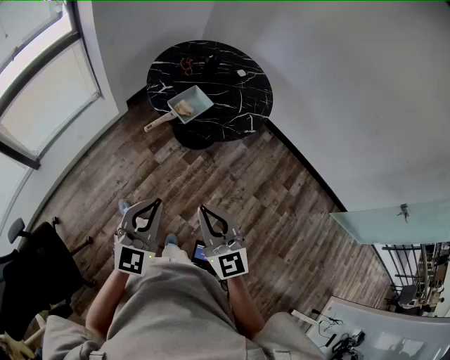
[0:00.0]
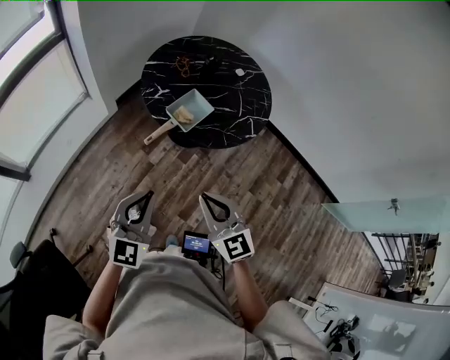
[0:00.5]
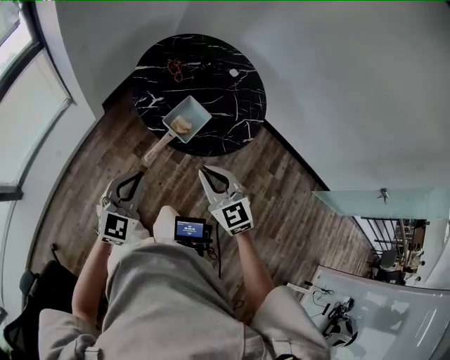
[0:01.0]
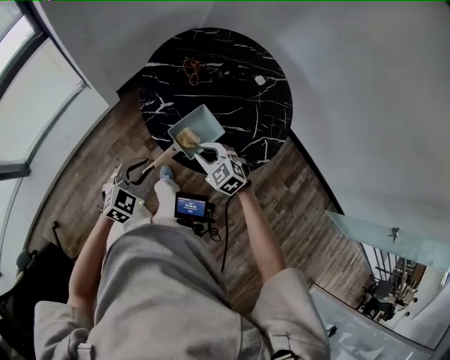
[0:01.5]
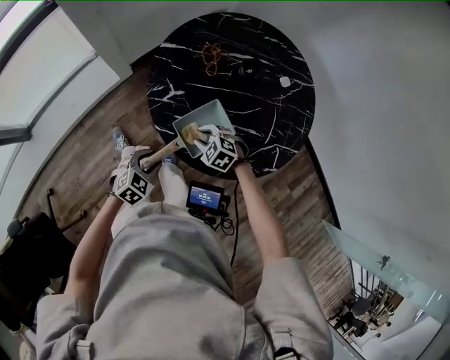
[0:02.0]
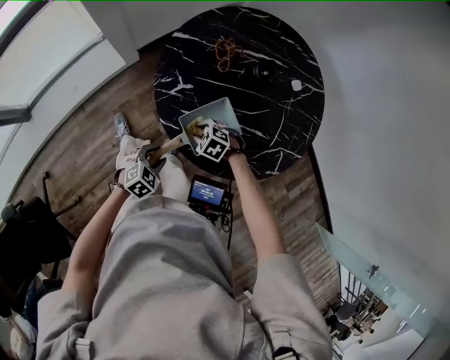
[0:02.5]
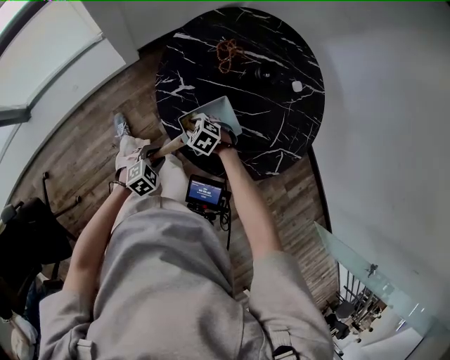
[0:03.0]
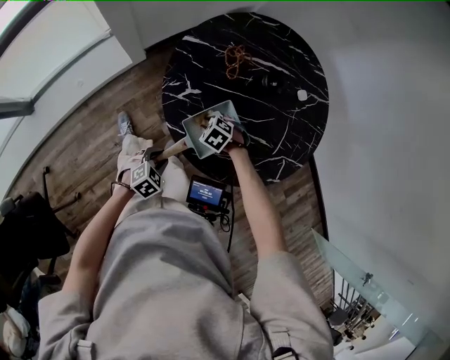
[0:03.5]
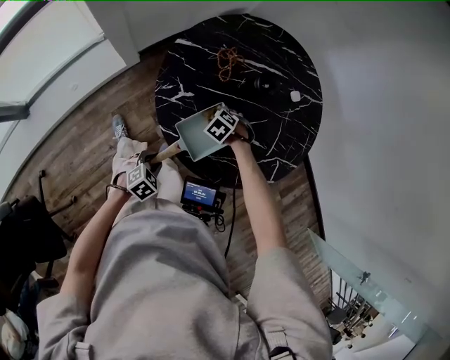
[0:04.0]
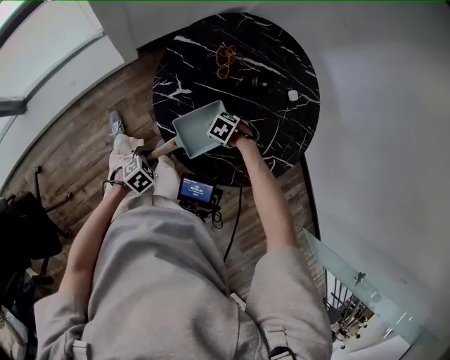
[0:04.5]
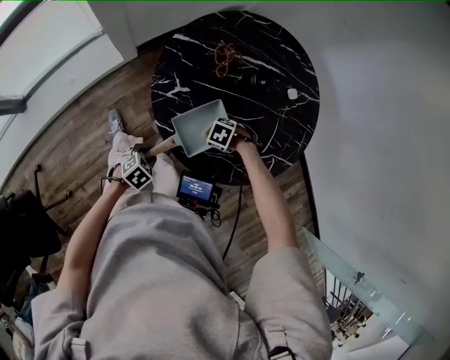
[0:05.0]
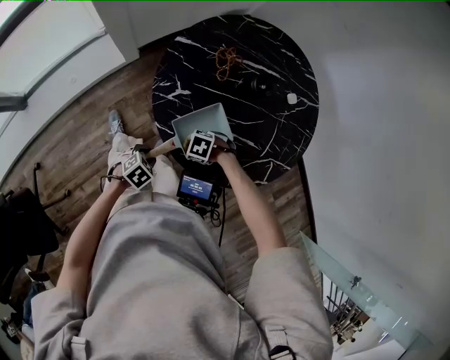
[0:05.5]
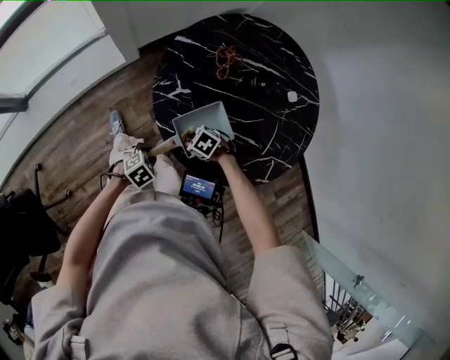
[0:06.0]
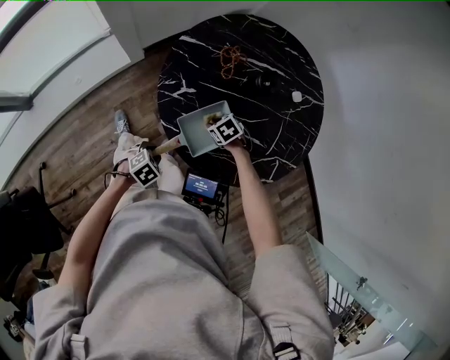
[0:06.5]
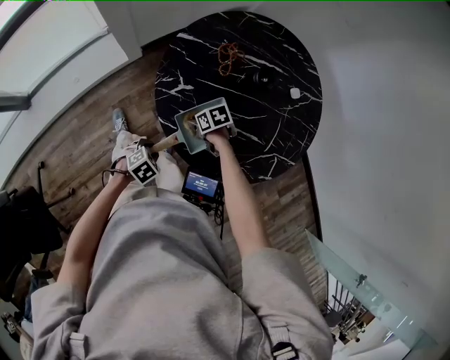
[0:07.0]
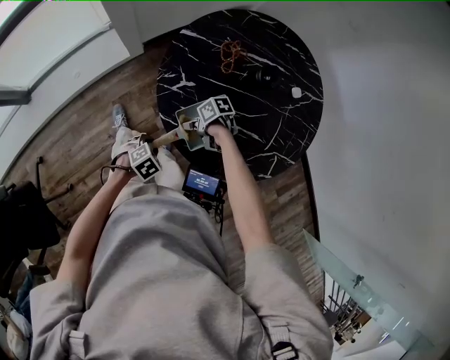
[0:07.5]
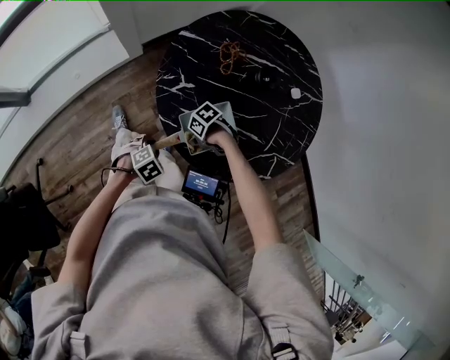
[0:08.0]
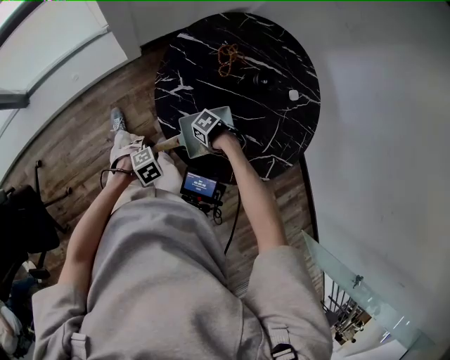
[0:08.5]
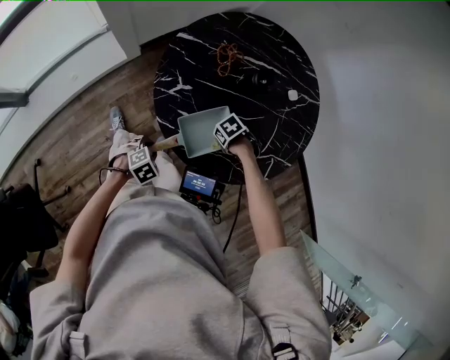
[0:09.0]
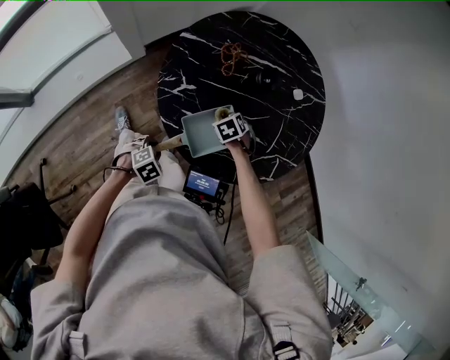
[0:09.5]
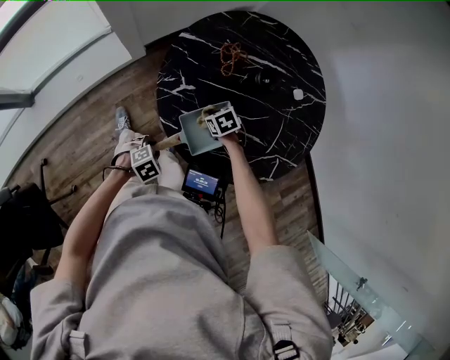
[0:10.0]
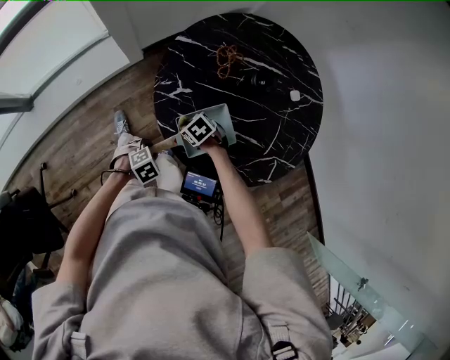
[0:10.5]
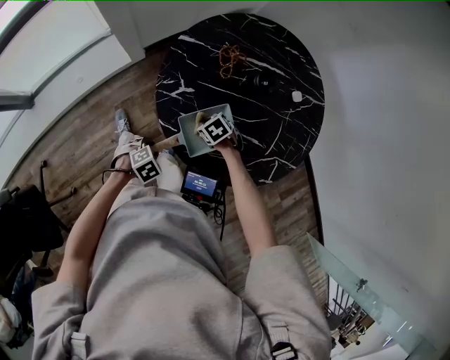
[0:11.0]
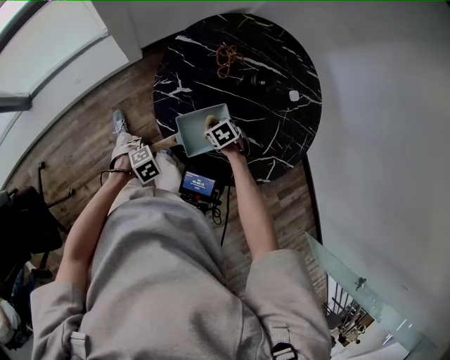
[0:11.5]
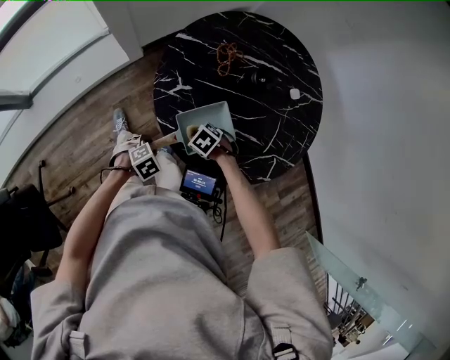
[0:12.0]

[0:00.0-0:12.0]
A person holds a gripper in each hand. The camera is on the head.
0:00.0 to 0:02.0: The grippers both shift forward and downward by roughly 60 cm. The right gripper points its fingers approximately 50 degrees further downward, and opens. Meanwhile the left gripper angles its fingers downward, by about 40 degrees, and opens its fingers.
0:02.0 to 0:04.0: The left gripper goes some 5 cm downward. Meanwhile the right gripper shifts by roughly 10 cm, and swivels about 20 degrees.
0:04.0 to 0:06.0: The right gripper moves some 10 cm, and rotates some 20 degrees.
0:06.0 to 0:08.0: The right gripper changes its angle by roughly 40 degrees.
0:08.0 to 0:10.0: The right gripper shifts by roughly 15 cm, and swivels about 40 degrees.
0:10.0 to 0:12.0: The right gripper moves approximately 10 cm, and rotates about 30 degrees.

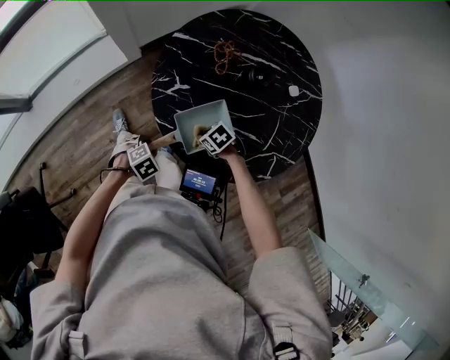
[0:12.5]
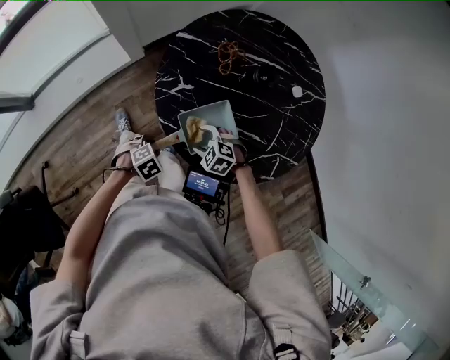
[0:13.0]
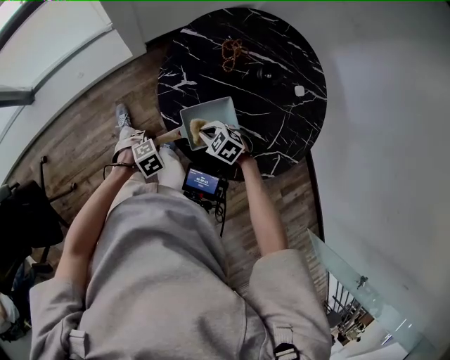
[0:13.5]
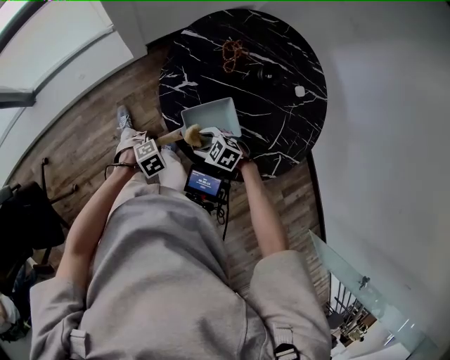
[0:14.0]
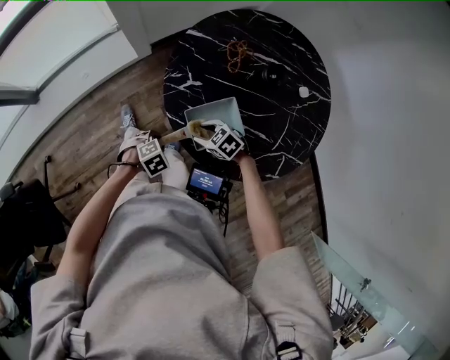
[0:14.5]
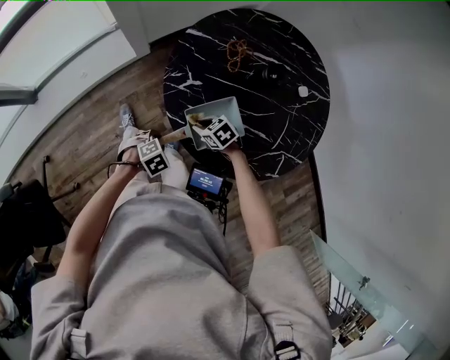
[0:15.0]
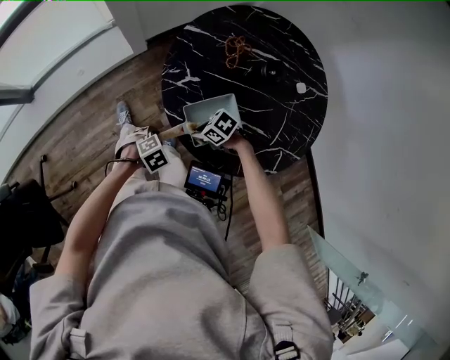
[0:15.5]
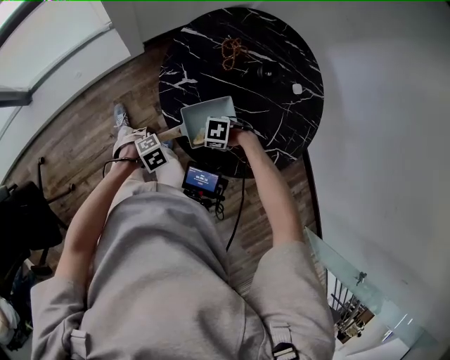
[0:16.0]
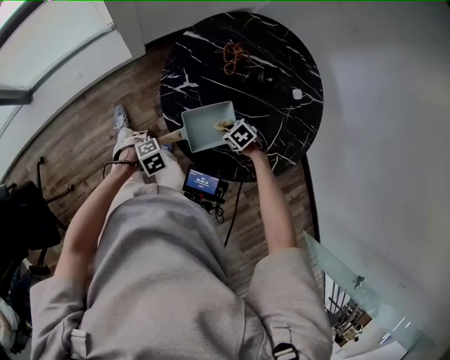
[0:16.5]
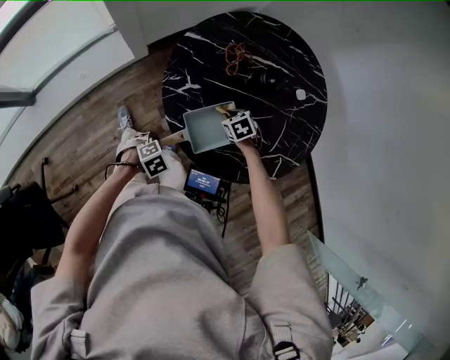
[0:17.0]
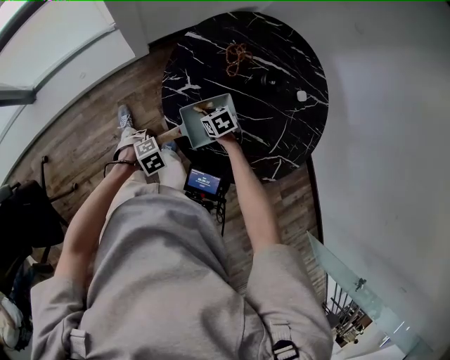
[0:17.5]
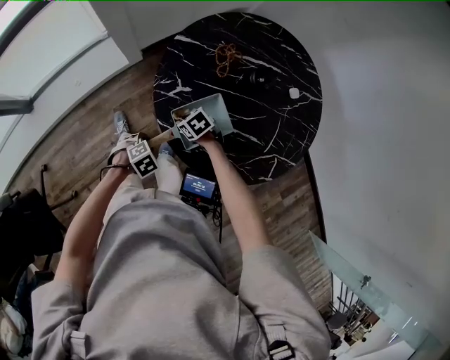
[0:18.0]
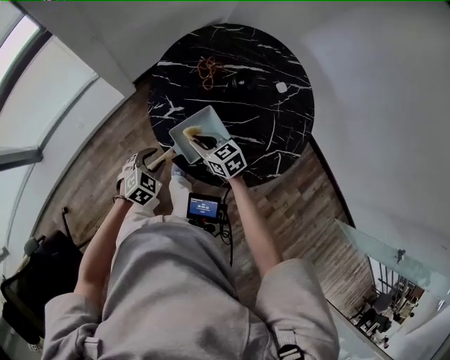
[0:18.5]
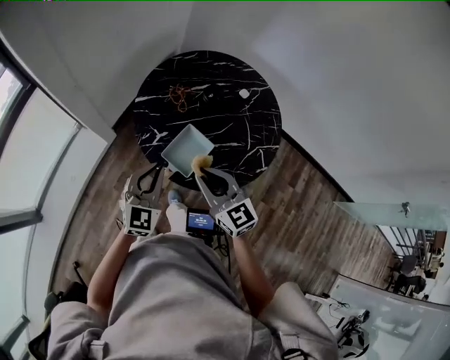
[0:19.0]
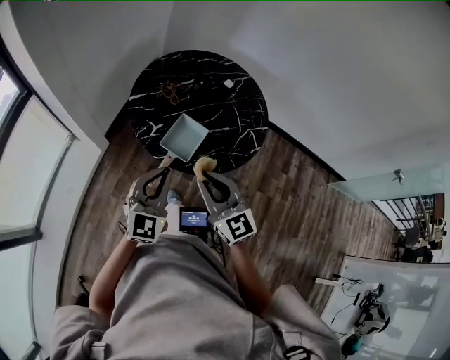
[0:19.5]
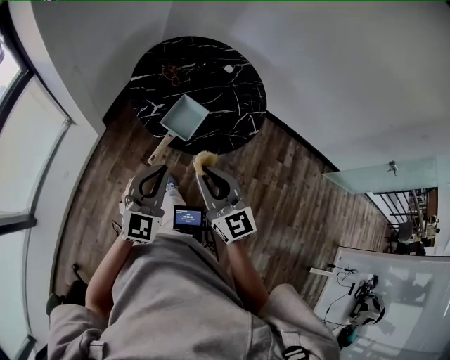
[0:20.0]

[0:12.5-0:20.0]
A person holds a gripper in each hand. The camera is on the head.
0:12.5 to 0:14.5: The right gripper ends up roughly 5 cm from where it was, and opens up.
0:14.5 to 0:16.5: The right gripper changes place by approximately 15 cm, rotates some 20 degrees, and closes.
0:16.5 to 0:18.0: The right gripper moves roughly 15 cm.
0:18.0 to 0:20.0: The grippers both shift upward by approximately 40 cm. The left gripper tilts its fingers approximately 80 degrees upward, and closes up. The right gripper tips its fingers upward by about 60 degrees.

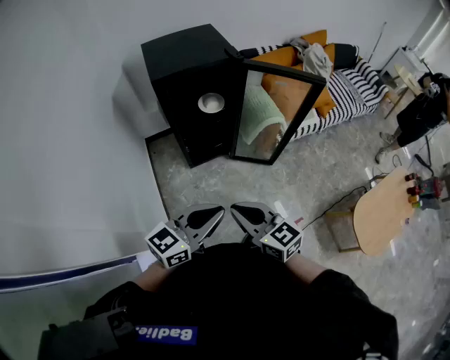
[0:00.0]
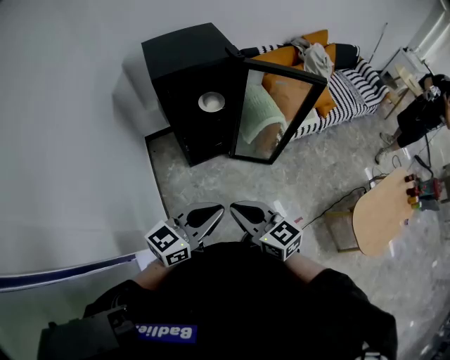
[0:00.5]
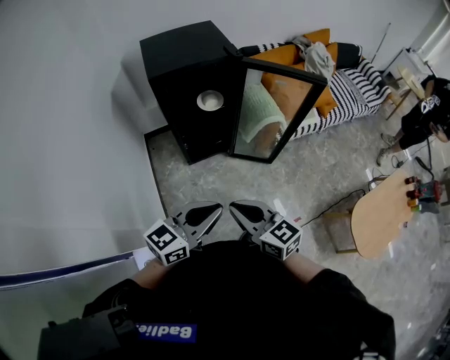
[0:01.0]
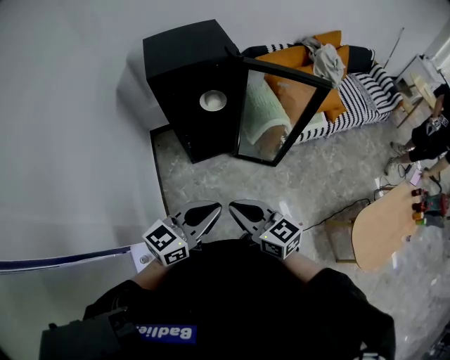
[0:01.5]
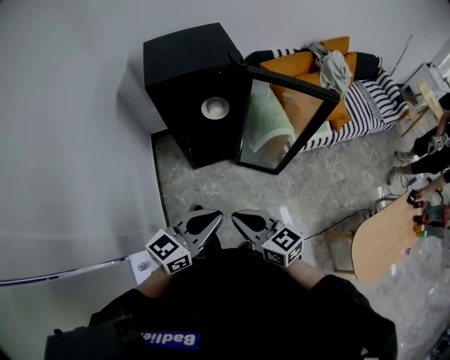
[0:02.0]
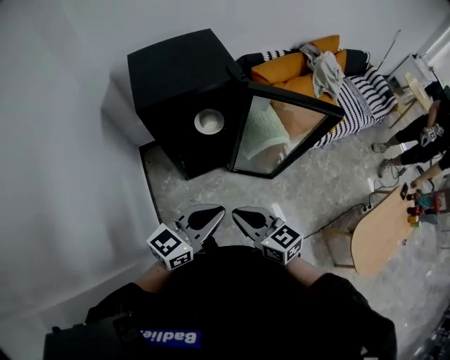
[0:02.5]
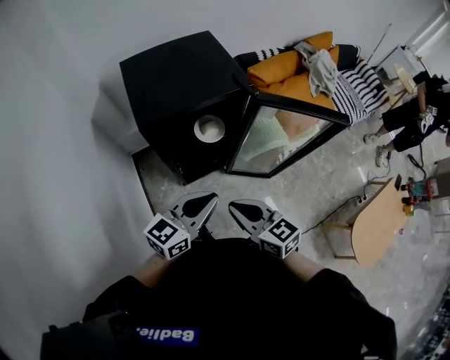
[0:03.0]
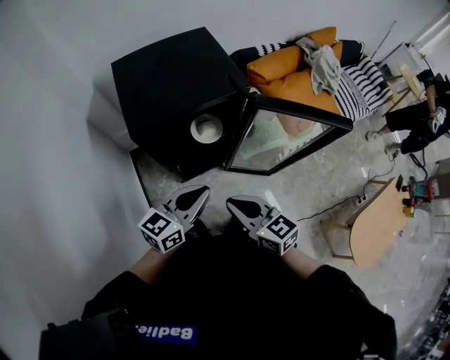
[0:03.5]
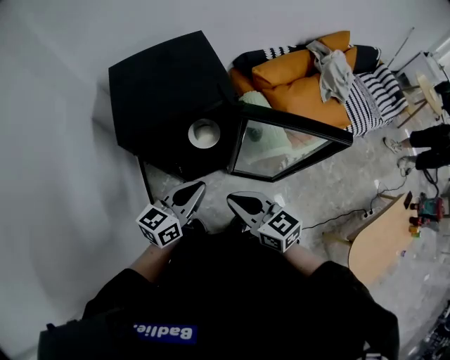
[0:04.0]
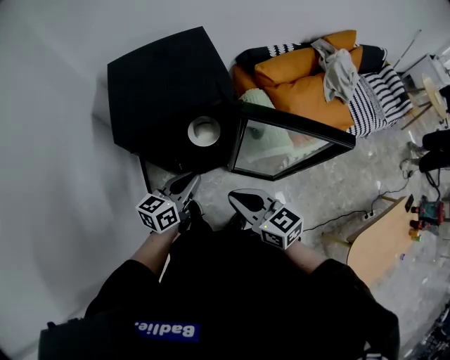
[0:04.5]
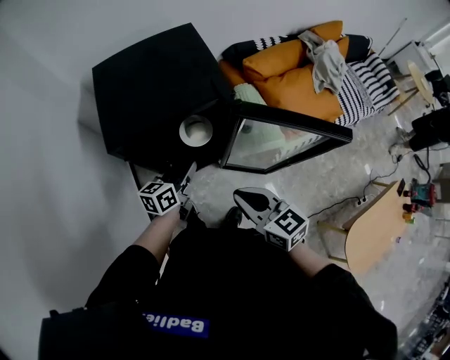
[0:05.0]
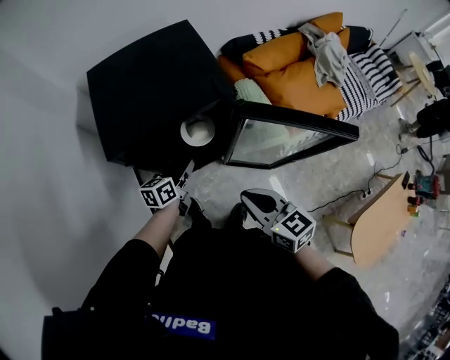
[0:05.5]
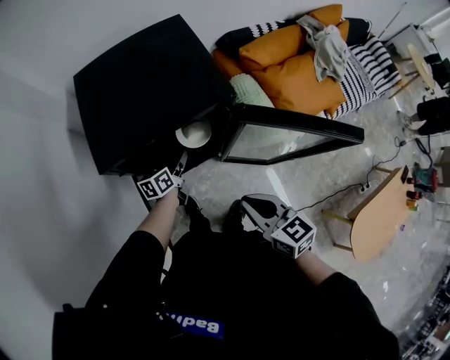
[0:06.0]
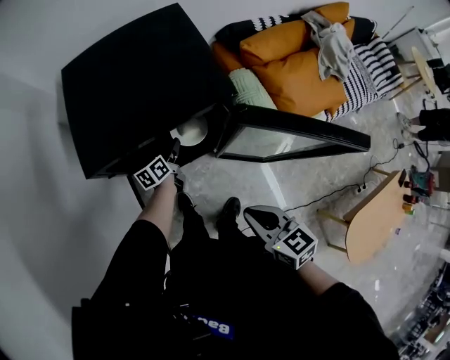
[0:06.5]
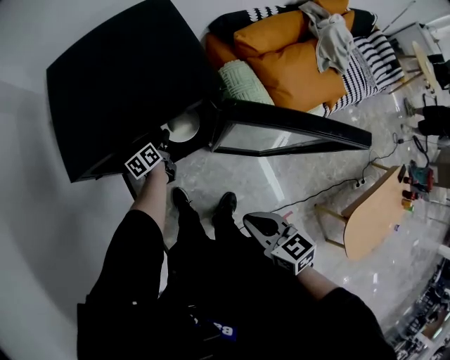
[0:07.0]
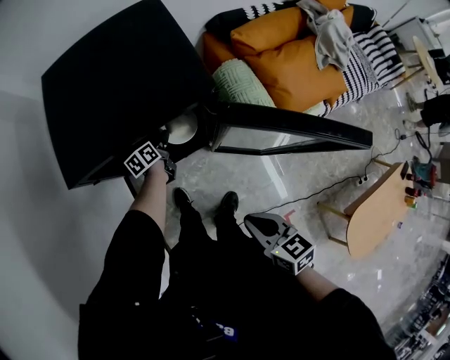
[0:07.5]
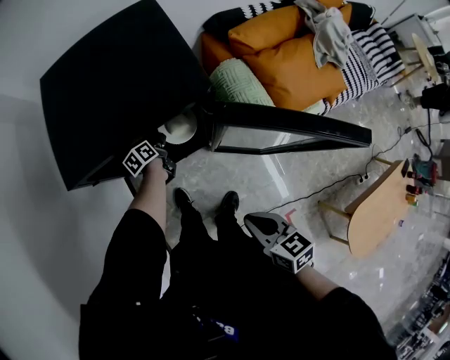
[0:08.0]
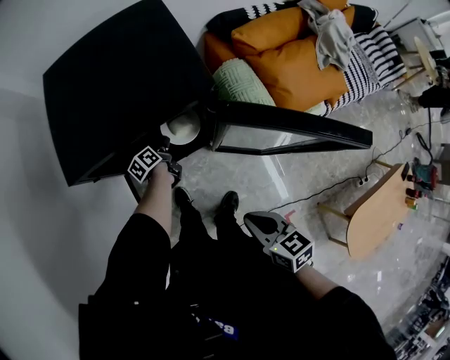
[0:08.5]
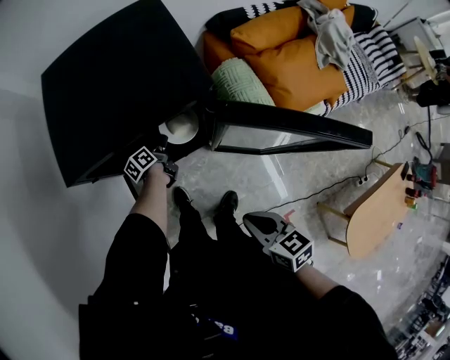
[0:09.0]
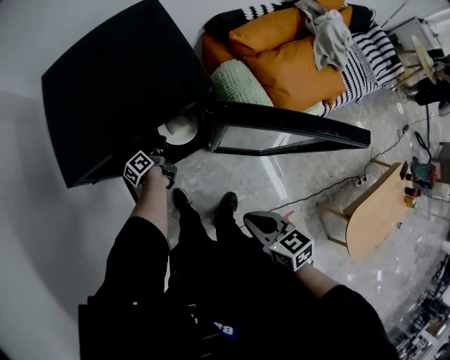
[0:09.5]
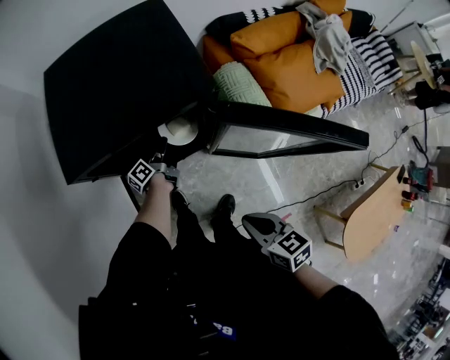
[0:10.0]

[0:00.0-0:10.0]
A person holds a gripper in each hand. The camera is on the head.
0:00.0 to 0:02.0: The left gripper heads forward and to the right, covering approximately 10 cm. Meanwhile the right gripper goes approximately 10 cm to the right and forward.
0:02.0 to 0:04.0: Both grippers move forward, roughly 25 cm.
0:04.0 to 0:06.0: The left gripper shifts about 30 cm downward and forward, and swivels about 30 degrees. Meanwhile the right gripper changes place by some 5 cm.
0:06.0 to 0:08.0: The left gripper heads downward and forward, covering approximately 15 cm, and swivels approximately 30 degrees. The right gripper shifts about 10 cm downward and backward.
0:08.0 to 0:10.0: The left gripper turns by about 30 degrees.
